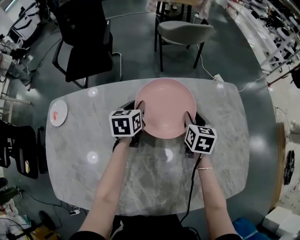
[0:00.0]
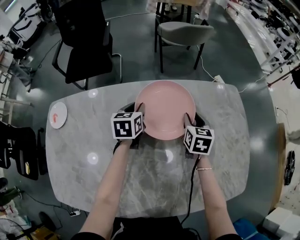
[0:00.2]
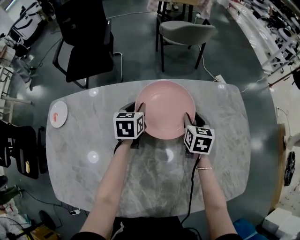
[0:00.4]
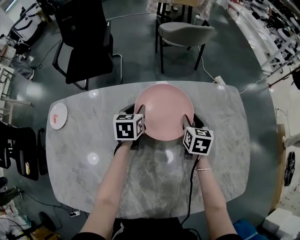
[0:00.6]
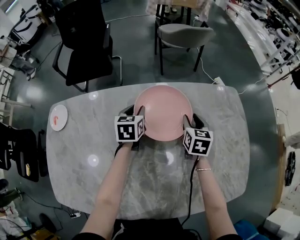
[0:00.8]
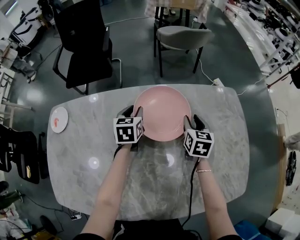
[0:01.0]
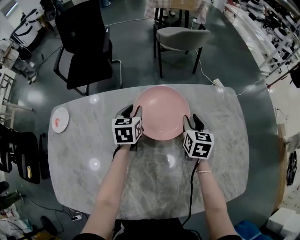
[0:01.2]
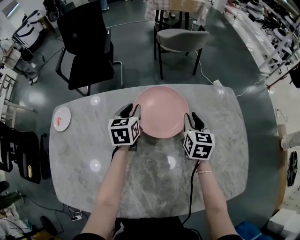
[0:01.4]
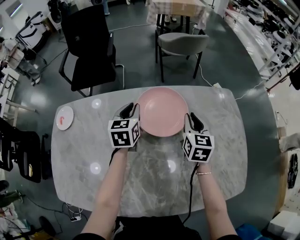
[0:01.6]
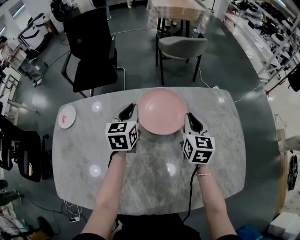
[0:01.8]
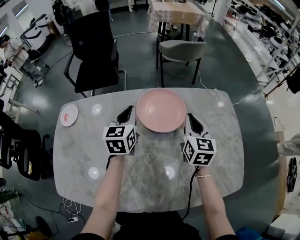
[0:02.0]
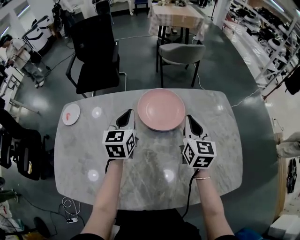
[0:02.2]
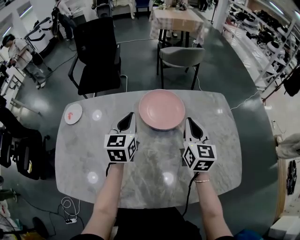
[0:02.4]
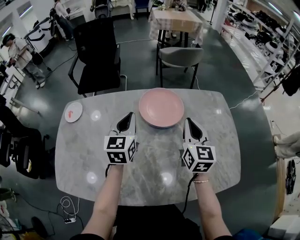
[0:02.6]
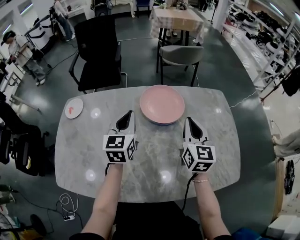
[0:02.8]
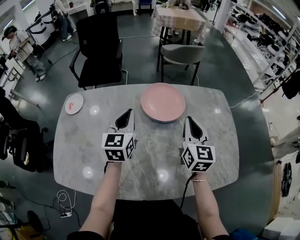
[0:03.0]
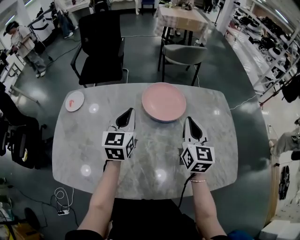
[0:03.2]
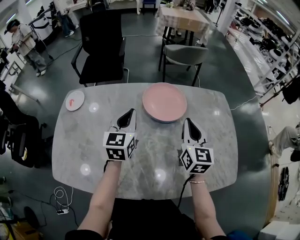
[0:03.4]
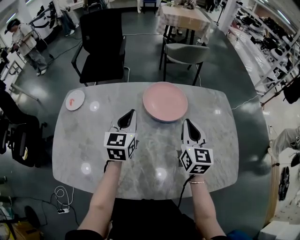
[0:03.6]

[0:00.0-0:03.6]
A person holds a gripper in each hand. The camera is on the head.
0:00.0 to 0:01.8: Both grippers travel together upward, some 10 cm. The right gripper closes its fingers.
0:01.8 to 0:03.6: The left gripper heads backward, covering some 15 cm, while the right gripper goes approximately 15 cm backward and upward.

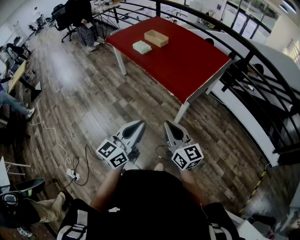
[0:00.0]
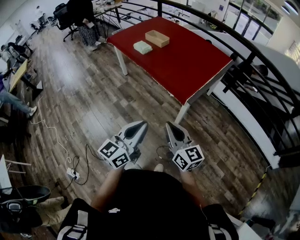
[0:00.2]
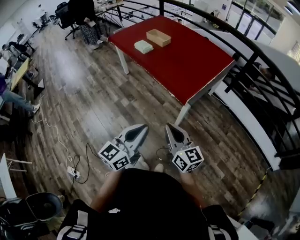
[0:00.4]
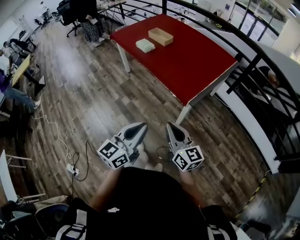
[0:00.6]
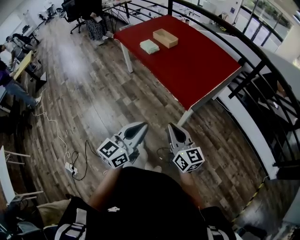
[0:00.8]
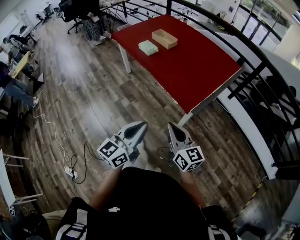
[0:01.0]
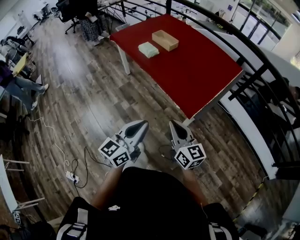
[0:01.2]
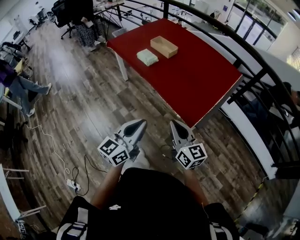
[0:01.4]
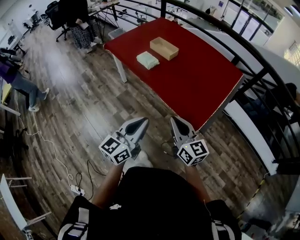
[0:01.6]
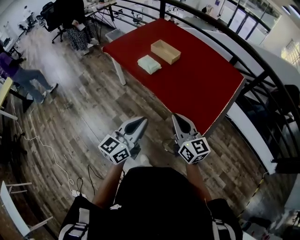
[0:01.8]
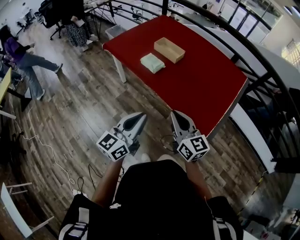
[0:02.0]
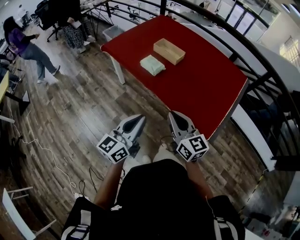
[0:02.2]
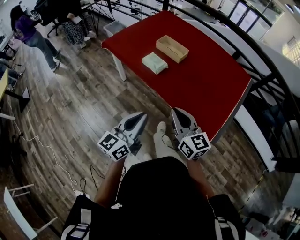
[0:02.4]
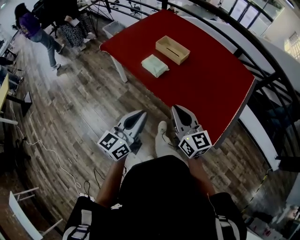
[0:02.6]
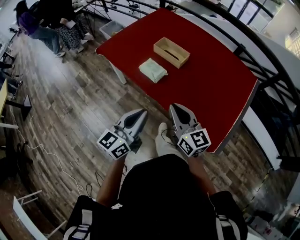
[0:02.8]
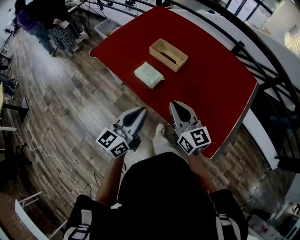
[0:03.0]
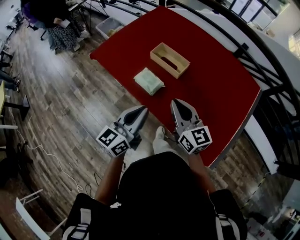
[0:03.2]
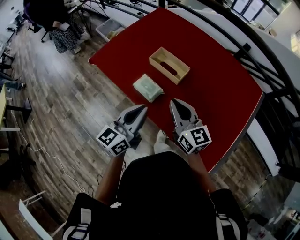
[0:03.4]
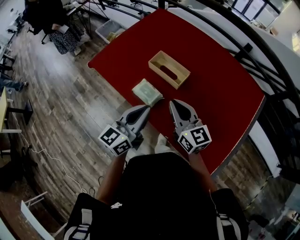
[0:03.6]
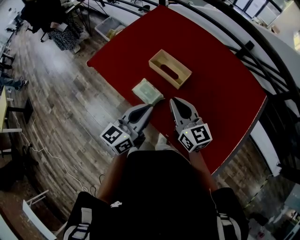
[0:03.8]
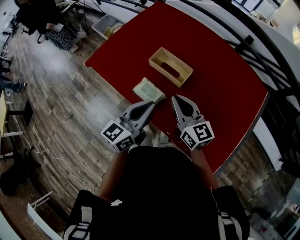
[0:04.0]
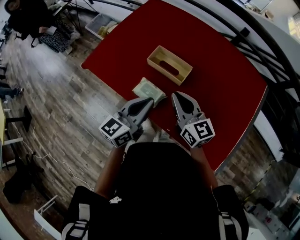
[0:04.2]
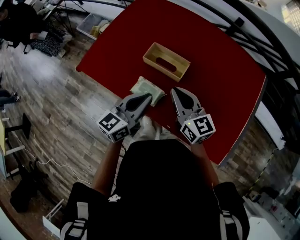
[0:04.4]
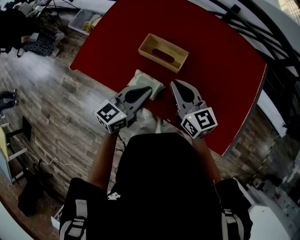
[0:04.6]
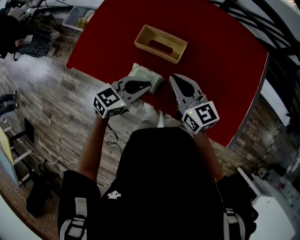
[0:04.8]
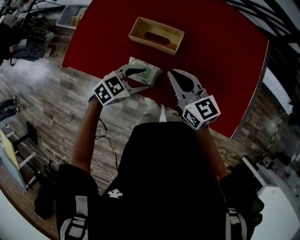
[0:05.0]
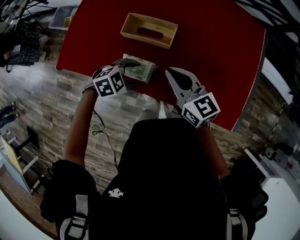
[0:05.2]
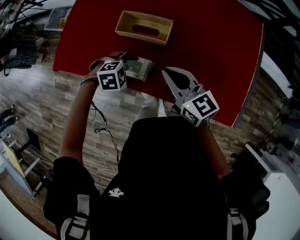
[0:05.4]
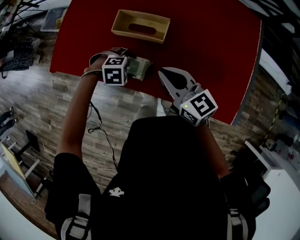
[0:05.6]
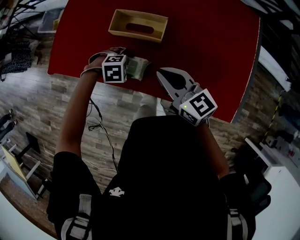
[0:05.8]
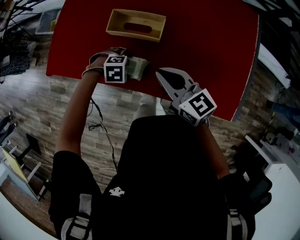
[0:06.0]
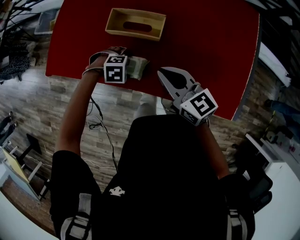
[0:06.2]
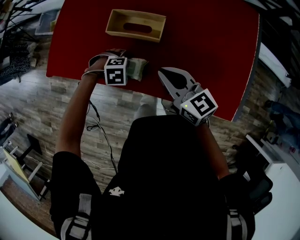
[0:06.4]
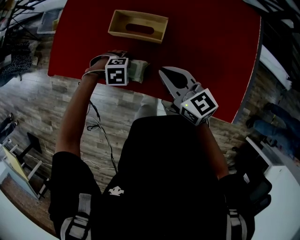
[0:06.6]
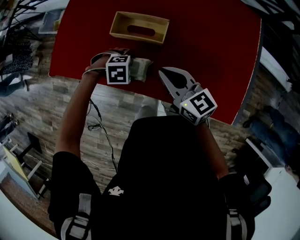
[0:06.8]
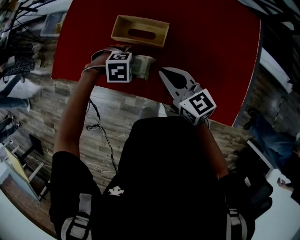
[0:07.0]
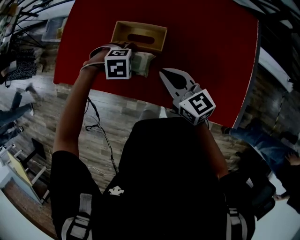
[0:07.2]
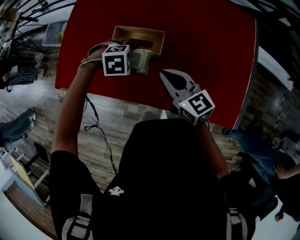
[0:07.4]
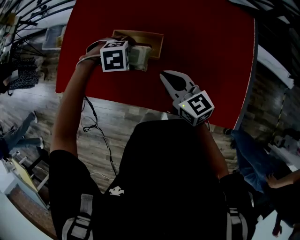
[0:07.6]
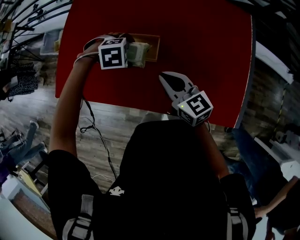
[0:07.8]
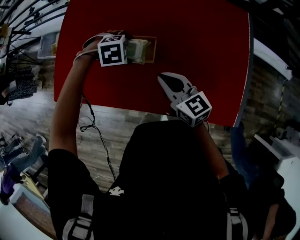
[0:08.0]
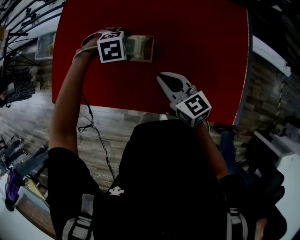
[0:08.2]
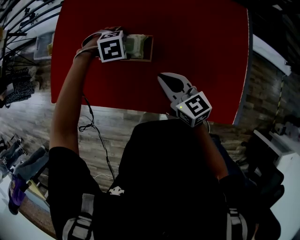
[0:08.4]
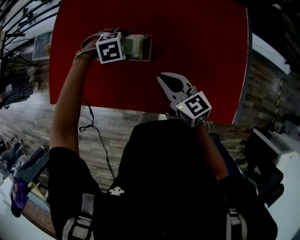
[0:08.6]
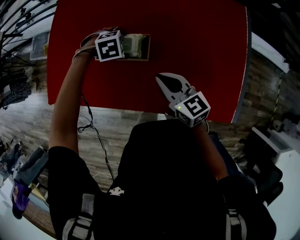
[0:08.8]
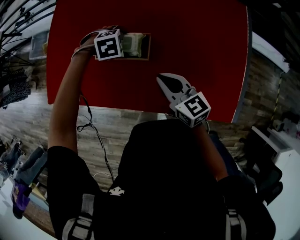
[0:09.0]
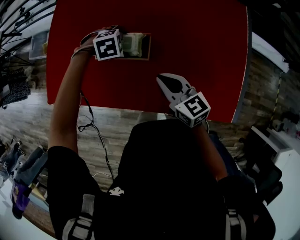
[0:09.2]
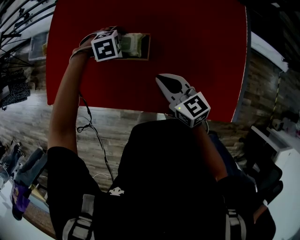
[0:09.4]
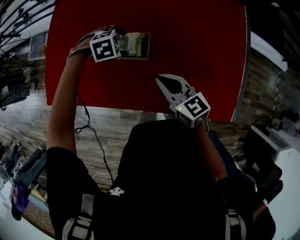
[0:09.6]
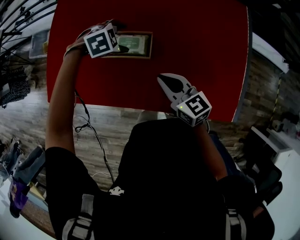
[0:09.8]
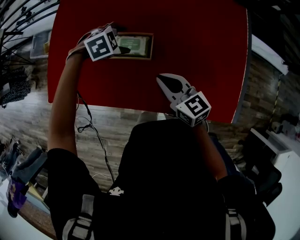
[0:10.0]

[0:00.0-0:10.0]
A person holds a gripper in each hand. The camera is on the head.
0:00.0 to 0:01.4: The two grippers go roughly 20 cm forward.
0:01.4 to 0:02.8: The two grippers go approximately 30 cm forward and to the left.
0:02.8 to 0:04.2: The two grippers go approximately 25 cm forward.
0:04.2 to 0:05.8: The right gripper moves downward, approximately 10 cm. Meanwhile the left gripper is displaced downward by roughly 30 cm, points its fingers approximately 70 degrees further downward, and opens its fingers.
0:05.8 to 0:07.2: The left gripper is displaced upward by approximately 5 cm.
0:07.2 to 0:08.6: The left gripper moves some 15 cm. The right gripper moves some 5 cm.
0:08.6 to 0:10.0: The grippers move only a little.

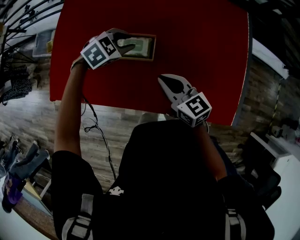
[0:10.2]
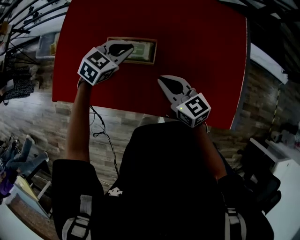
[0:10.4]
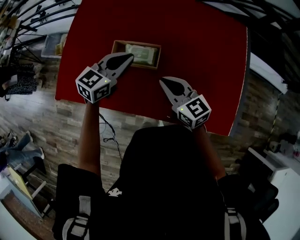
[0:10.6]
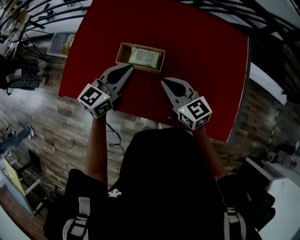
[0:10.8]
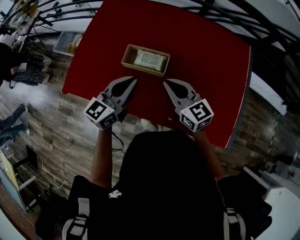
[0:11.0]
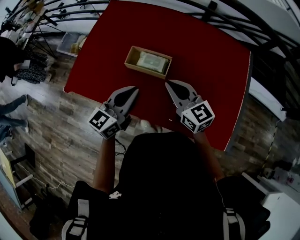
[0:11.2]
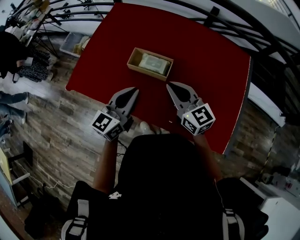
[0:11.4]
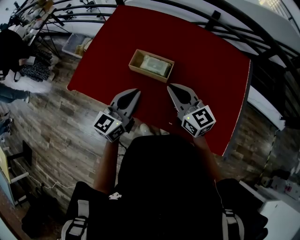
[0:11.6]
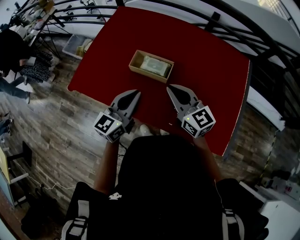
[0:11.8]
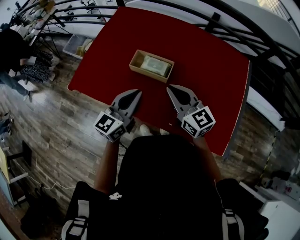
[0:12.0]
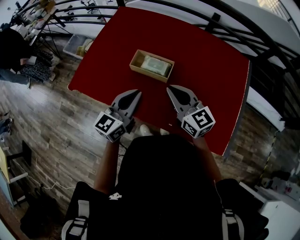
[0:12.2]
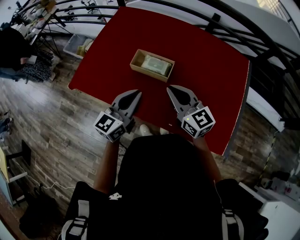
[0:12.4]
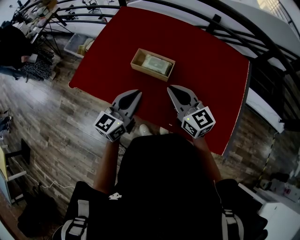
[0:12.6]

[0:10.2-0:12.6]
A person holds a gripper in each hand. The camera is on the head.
0:10.2 to 0:11.4: The right gripper shifts about 10 cm upward, while the left gripper goes about 25 cm backward and upward, and tilts its fingers some 50 degrees upward.
0:11.4 to 0:12.6: The grippers move only a little.

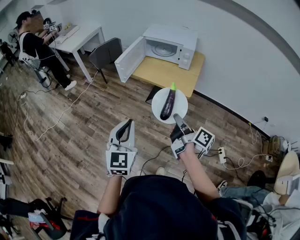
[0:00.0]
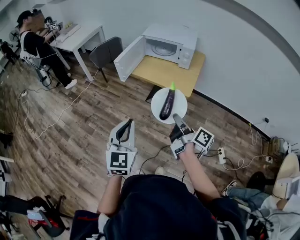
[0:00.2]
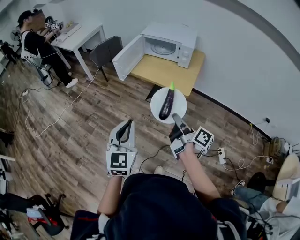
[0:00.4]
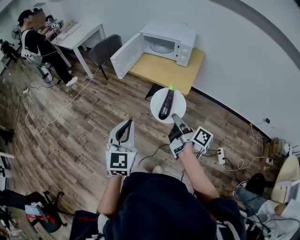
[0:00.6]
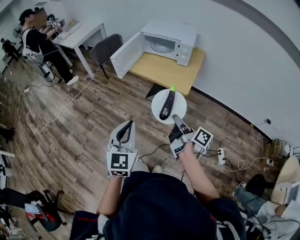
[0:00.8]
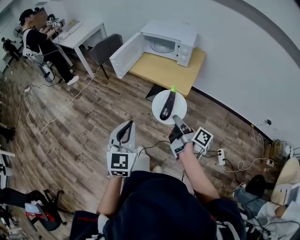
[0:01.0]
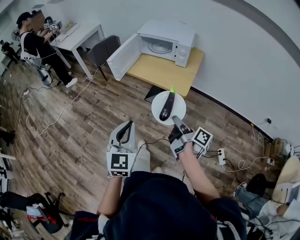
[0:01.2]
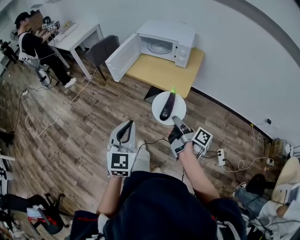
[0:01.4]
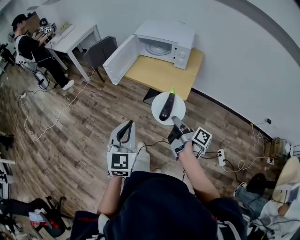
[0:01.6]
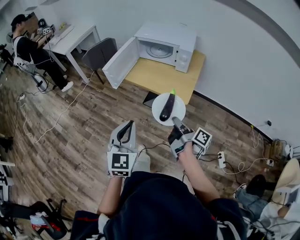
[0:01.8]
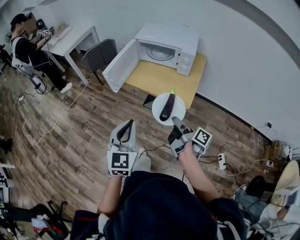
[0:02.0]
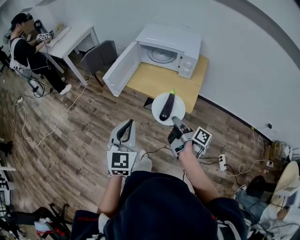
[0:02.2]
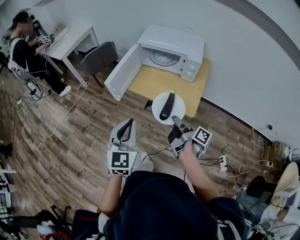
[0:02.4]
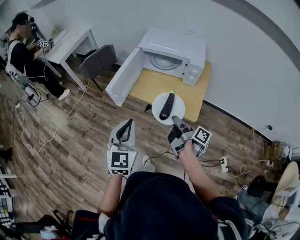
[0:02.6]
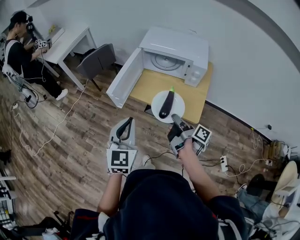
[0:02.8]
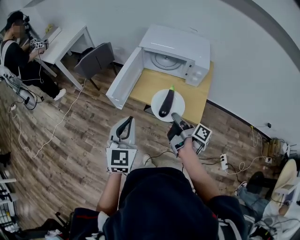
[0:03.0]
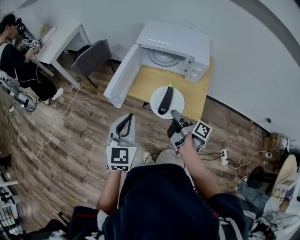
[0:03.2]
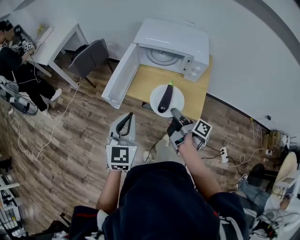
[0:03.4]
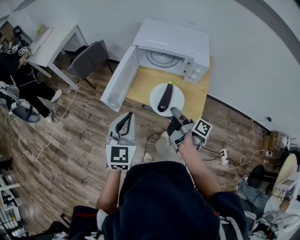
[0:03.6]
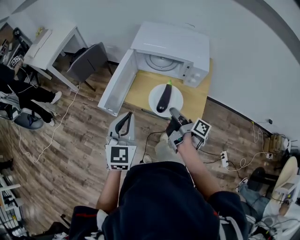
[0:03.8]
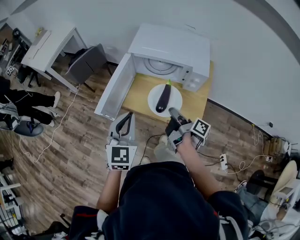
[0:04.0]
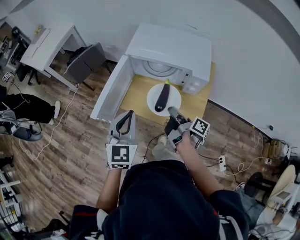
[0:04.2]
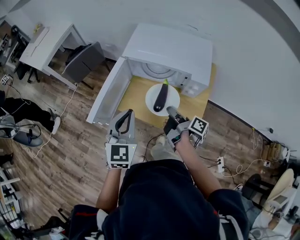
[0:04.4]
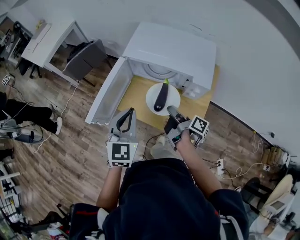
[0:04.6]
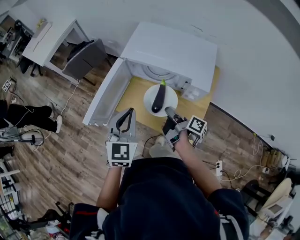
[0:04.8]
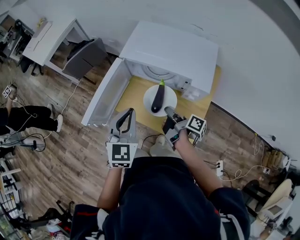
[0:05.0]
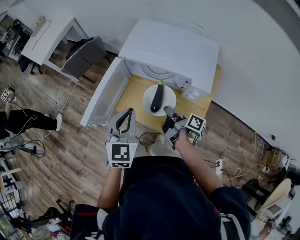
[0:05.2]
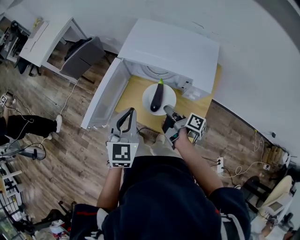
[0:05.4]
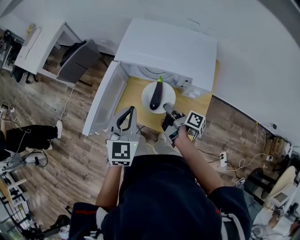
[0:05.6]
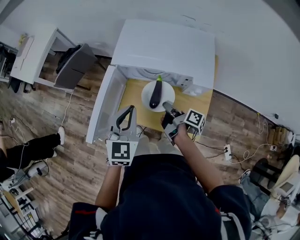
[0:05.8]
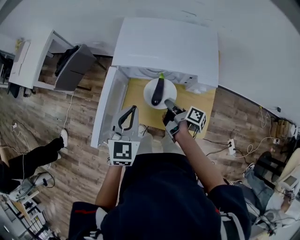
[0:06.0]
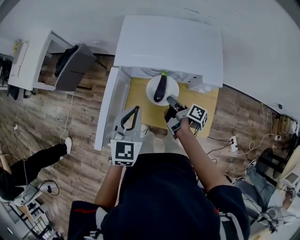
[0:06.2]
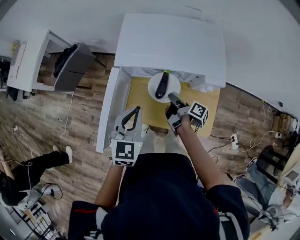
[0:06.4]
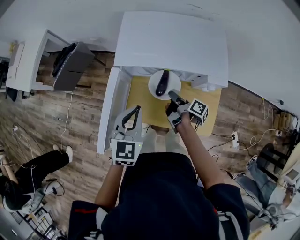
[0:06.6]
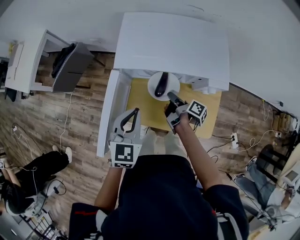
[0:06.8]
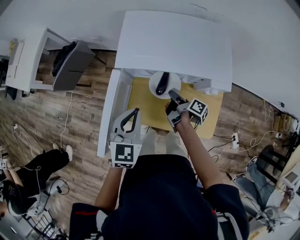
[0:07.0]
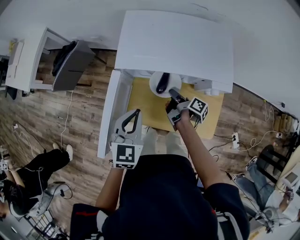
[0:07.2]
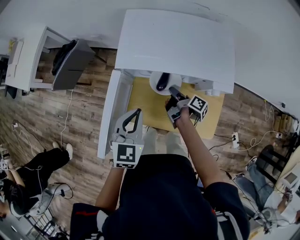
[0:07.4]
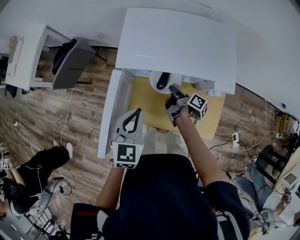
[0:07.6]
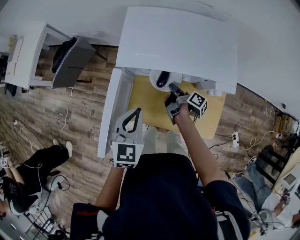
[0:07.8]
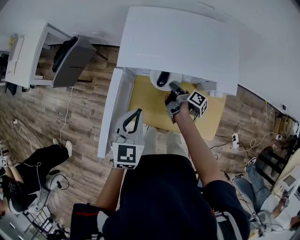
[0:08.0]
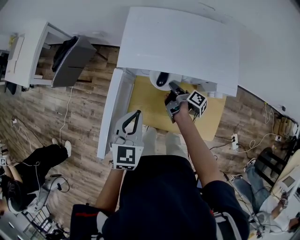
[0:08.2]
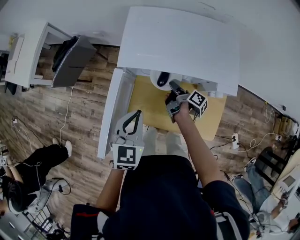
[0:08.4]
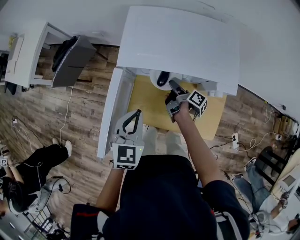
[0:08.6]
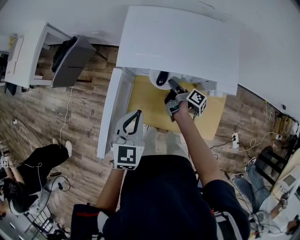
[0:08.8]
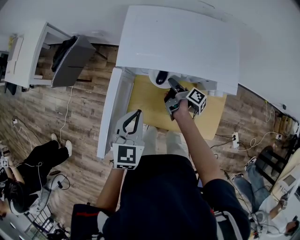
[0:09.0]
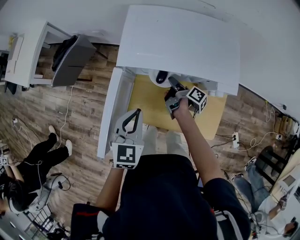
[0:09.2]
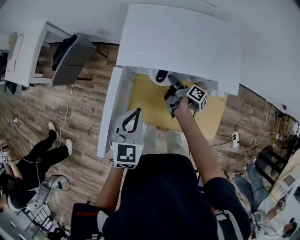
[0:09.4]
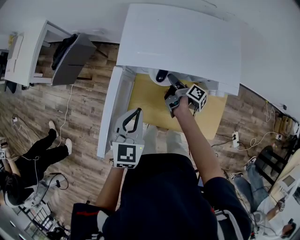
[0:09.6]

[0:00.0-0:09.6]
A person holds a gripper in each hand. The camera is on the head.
0:00.0 to 0:01.6: The left gripper ends up some 10 cm from where it was.
0:01.6 to 0:03.2: The left gripper ends up approximately 30 cm from where it was.
0:03.2 to 0:04.8: The left gripper ends up approximately 20 cm from where it was.
0:04.8 to 0:06.4: The left gripper changes place by roughly 10 cm, and swivels about 20 degrees.
